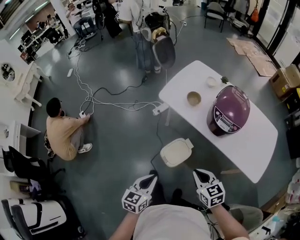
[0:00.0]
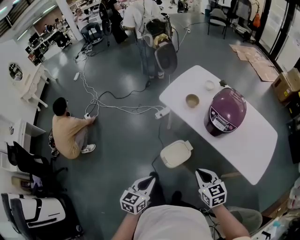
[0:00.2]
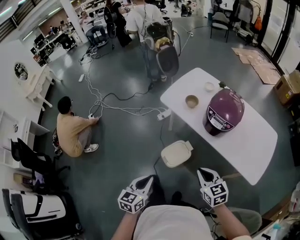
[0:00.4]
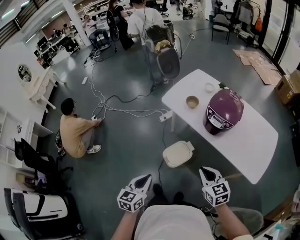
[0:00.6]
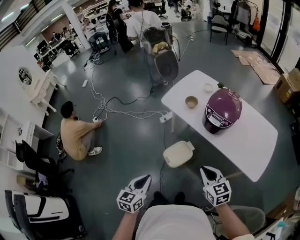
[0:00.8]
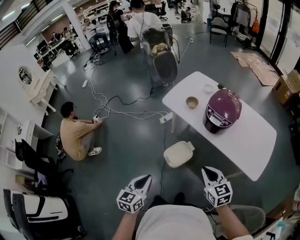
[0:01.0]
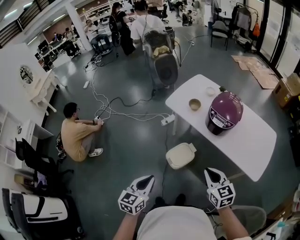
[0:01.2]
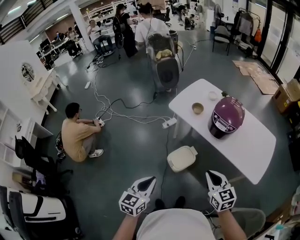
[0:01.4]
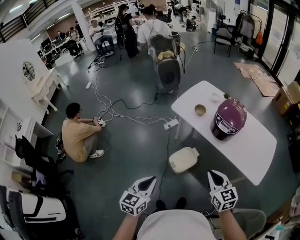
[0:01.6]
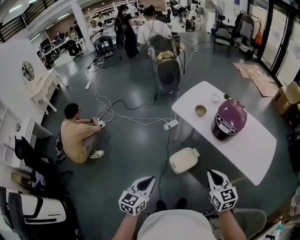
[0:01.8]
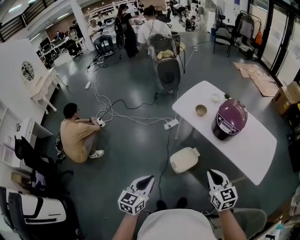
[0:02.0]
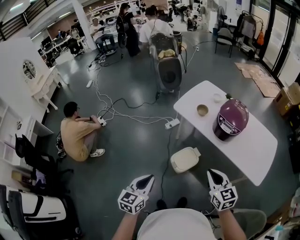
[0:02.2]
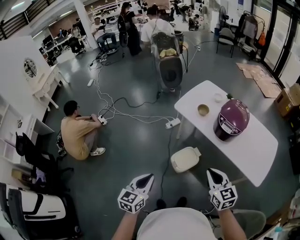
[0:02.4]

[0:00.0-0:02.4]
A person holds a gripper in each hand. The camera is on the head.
0:00.0 to 0:01.2: The right gripper heads backward, upward and to the right, covering roughly 15 cm. Meanwhile the left gripper heads backward and upward, covering about 15 cm.
0:01.2 to 0:02.4: Both grippers travel together to the left, some 5 cm.

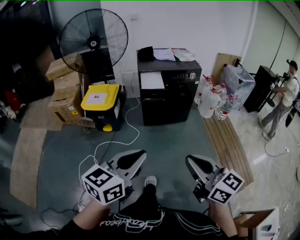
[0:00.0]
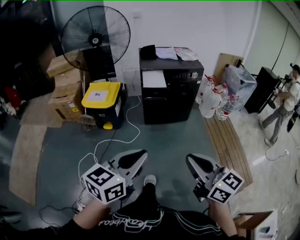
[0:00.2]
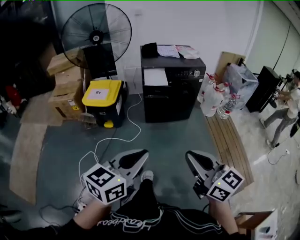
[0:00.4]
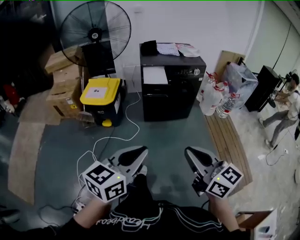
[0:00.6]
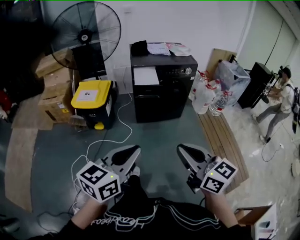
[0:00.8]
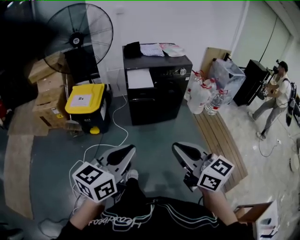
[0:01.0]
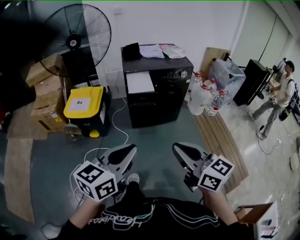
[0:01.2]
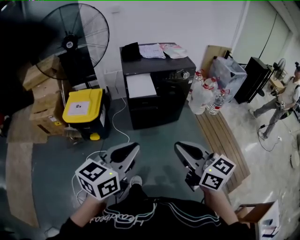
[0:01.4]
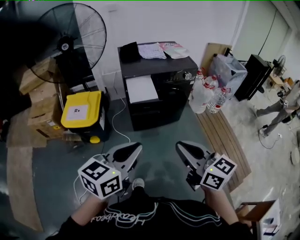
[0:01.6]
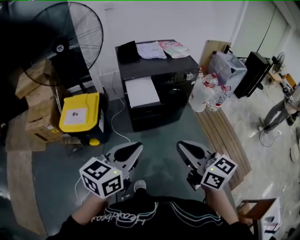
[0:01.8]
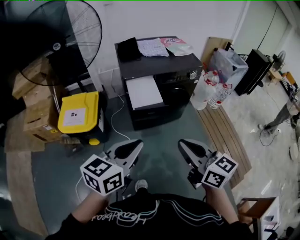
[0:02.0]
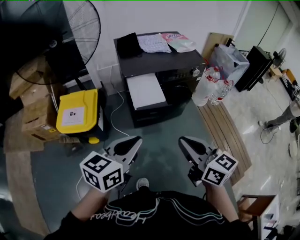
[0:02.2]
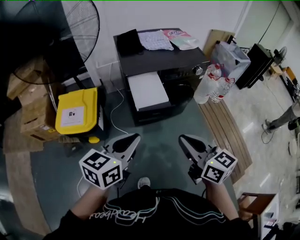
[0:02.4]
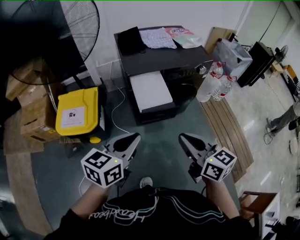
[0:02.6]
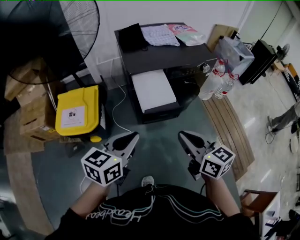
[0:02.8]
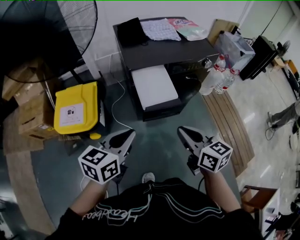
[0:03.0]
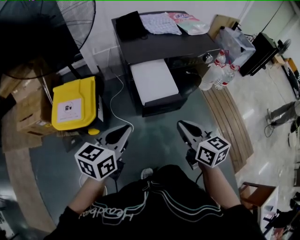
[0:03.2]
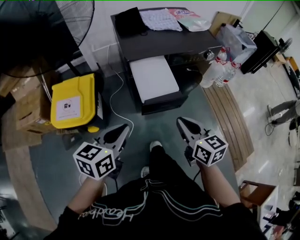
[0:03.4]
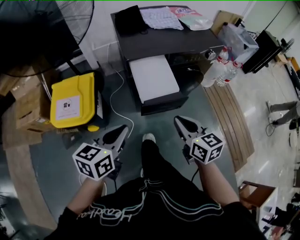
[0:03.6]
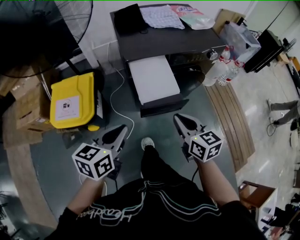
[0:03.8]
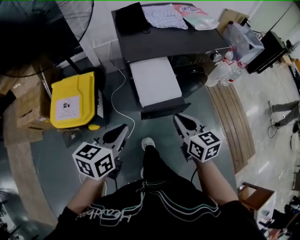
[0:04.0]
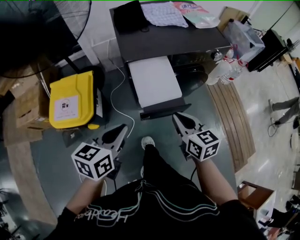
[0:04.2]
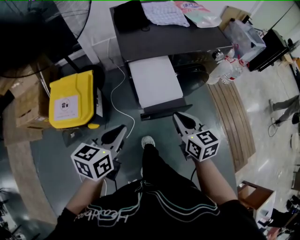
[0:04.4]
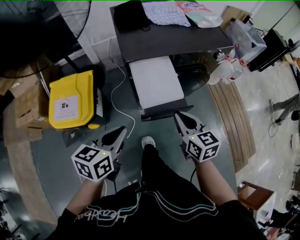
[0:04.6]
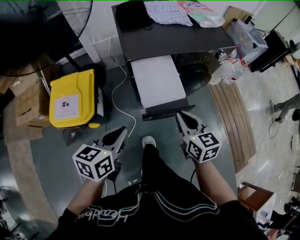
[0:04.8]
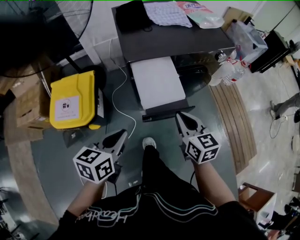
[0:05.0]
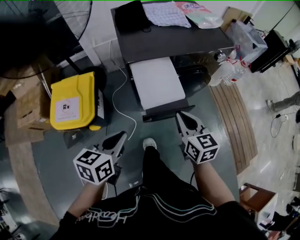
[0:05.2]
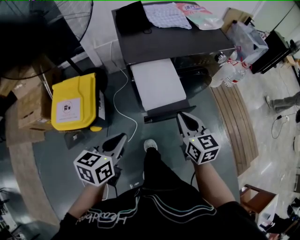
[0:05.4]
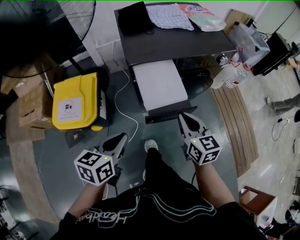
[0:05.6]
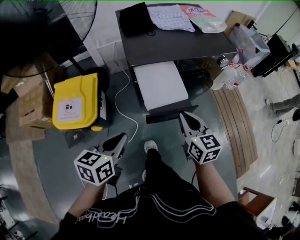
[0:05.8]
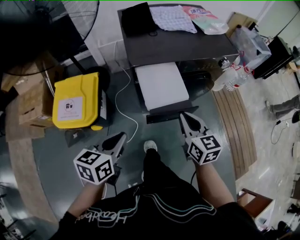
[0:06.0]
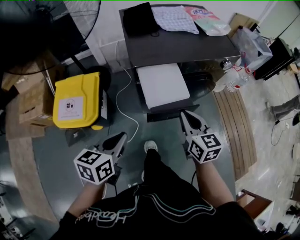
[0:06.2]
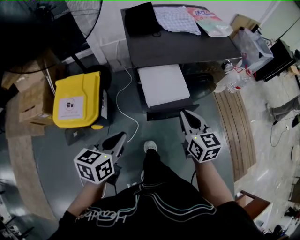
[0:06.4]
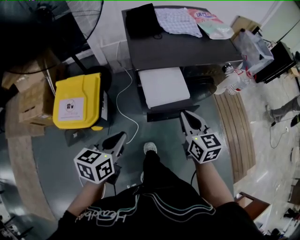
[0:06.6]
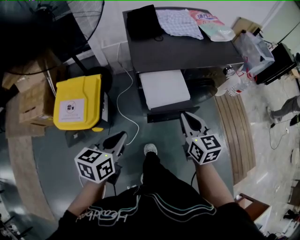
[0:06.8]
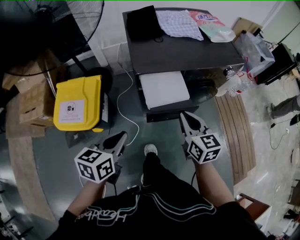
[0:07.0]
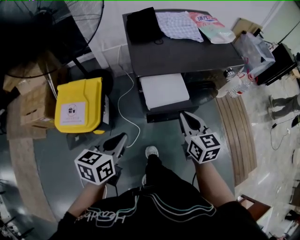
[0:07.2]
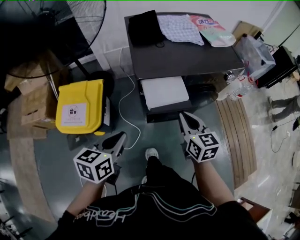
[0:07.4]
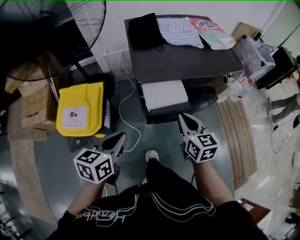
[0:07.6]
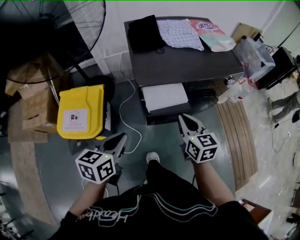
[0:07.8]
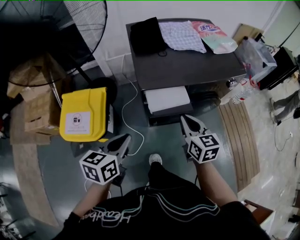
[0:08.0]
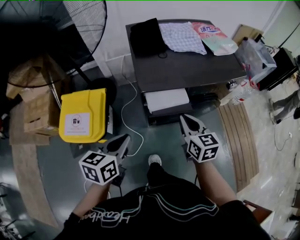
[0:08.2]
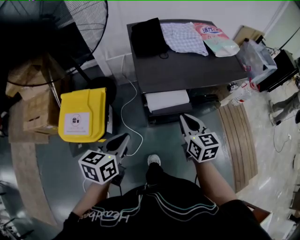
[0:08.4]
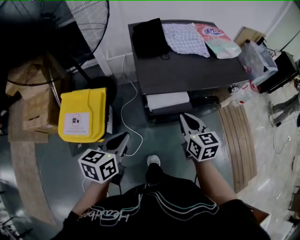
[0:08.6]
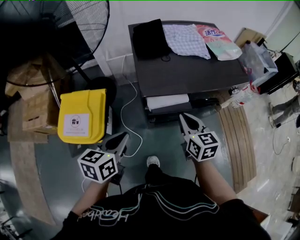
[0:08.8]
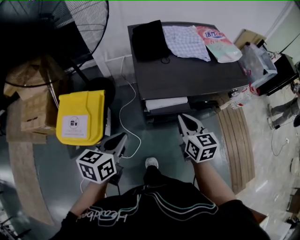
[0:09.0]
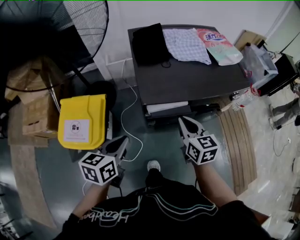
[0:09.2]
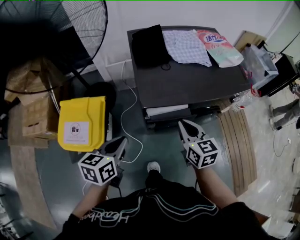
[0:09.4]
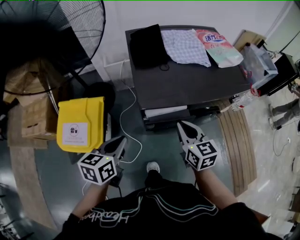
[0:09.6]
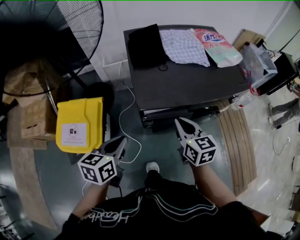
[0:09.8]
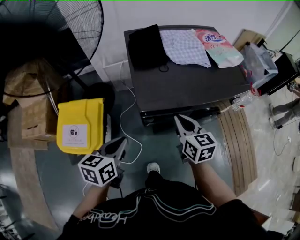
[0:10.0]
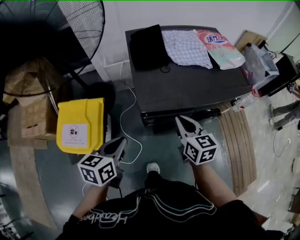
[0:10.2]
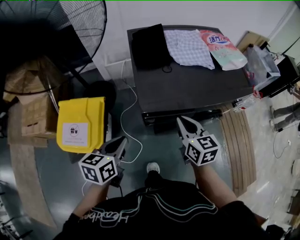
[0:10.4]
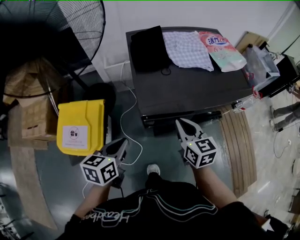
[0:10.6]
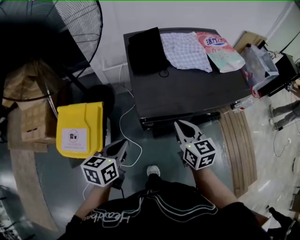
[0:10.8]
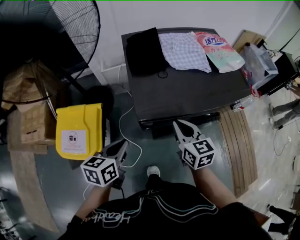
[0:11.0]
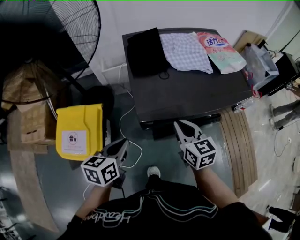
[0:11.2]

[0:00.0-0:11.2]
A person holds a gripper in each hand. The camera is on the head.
0:00.0 to 0:01.6: Both grippers travel together forward, some 25 cm.
0:01.6 to 0:03.2: The left gripper shifts roughly 30 cm forward, to the left and downward. The right gripper shifts roughly 30 cm forward and downward, and turns by roughly 20 degrees.
0:03.2 to 0:04.8: The left gripper heads downward and forward, covering about 10 cm; the right gripper goes roughly 10 cm forward and downward.
0:04.8 to 0:06.4: The grippers stay close to where they were, moving slightly.
0:06.4 to 0:08.0: The two grippers go about 5 cm forward.
0:08.0 to 0:09.6: Both grippers move forward, some 5 cm.
0:09.6 to 0:11.2: The left gripper ends up some 5 cm from where it was; the right gripper heads forward, covering about 5 cm.

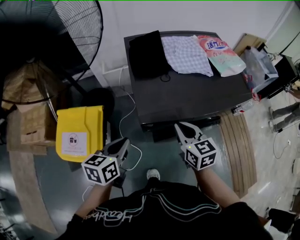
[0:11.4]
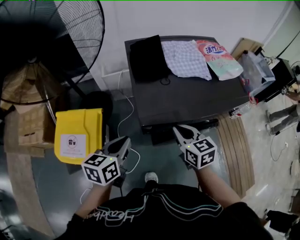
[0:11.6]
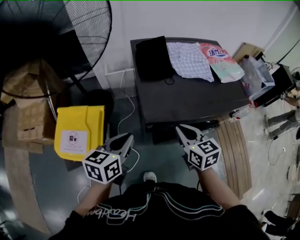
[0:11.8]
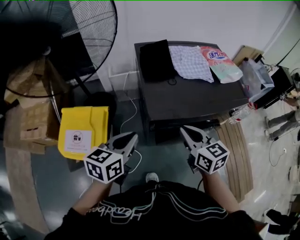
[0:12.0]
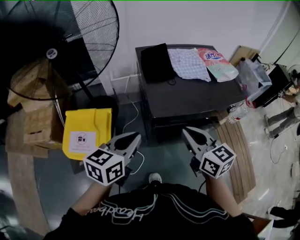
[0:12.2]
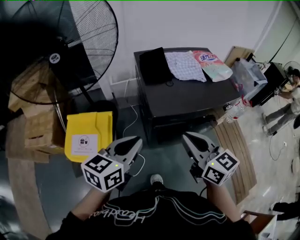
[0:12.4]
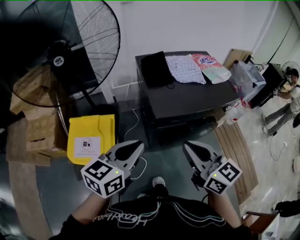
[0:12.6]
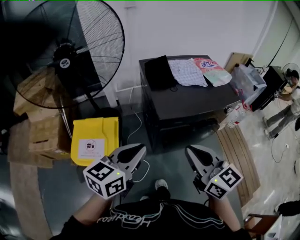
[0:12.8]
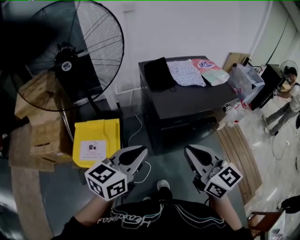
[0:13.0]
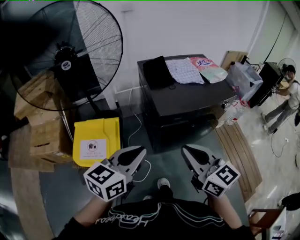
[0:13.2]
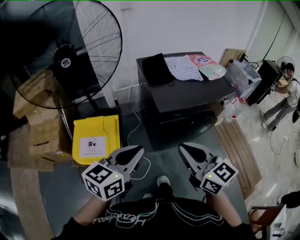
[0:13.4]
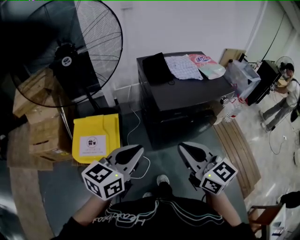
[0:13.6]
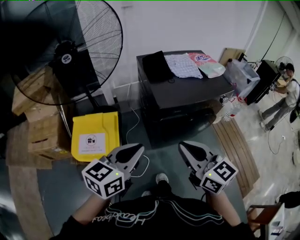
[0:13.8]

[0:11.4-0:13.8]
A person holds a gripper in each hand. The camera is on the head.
0:11.4 to 0:12.6: Both grippers move upward and backward, approximately 25 cm. The left gripper rotates about 30 degrees.
0:12.6 to 0:13.8: The grippers both shift backward by about 10 cm.

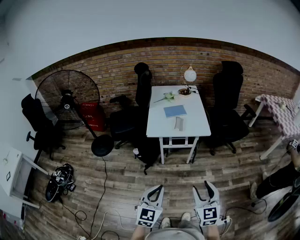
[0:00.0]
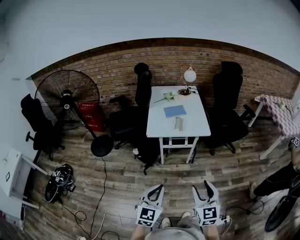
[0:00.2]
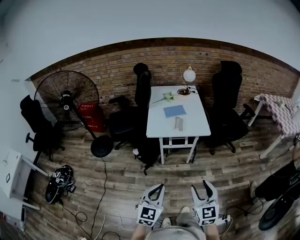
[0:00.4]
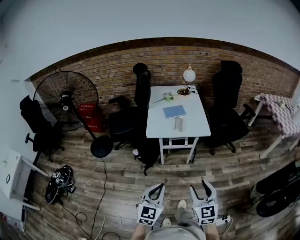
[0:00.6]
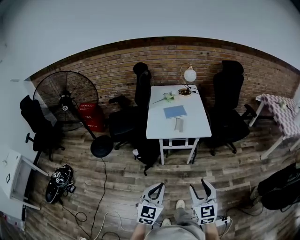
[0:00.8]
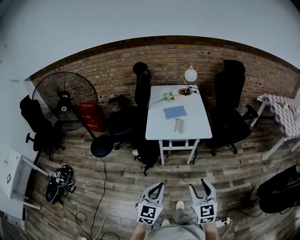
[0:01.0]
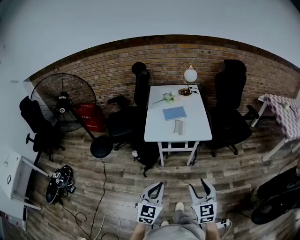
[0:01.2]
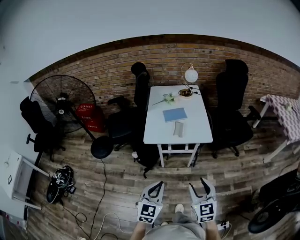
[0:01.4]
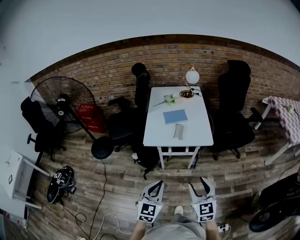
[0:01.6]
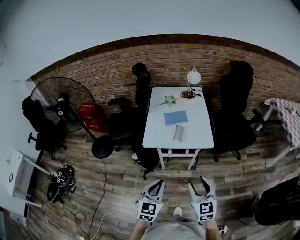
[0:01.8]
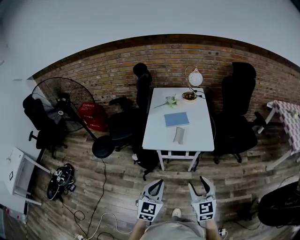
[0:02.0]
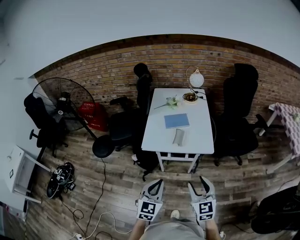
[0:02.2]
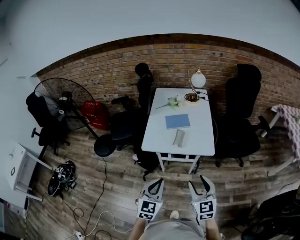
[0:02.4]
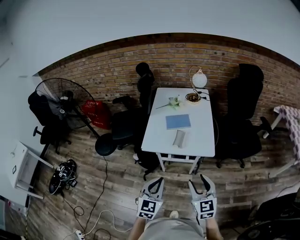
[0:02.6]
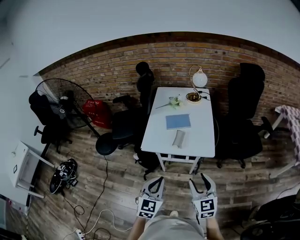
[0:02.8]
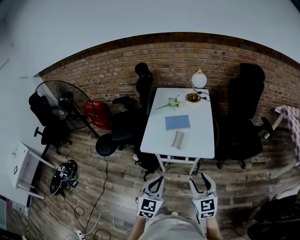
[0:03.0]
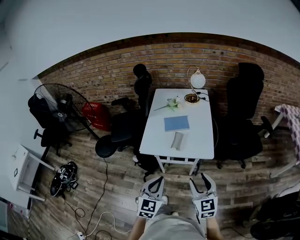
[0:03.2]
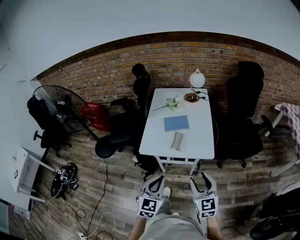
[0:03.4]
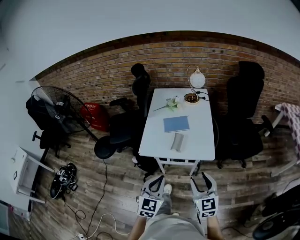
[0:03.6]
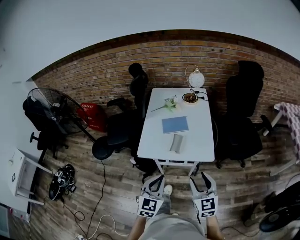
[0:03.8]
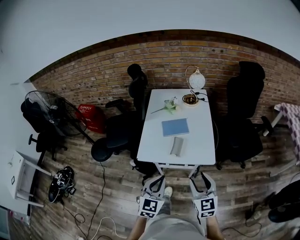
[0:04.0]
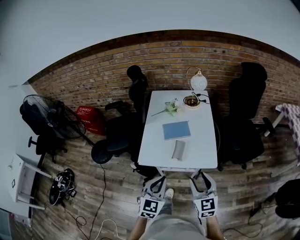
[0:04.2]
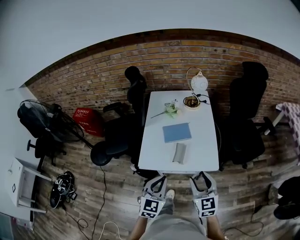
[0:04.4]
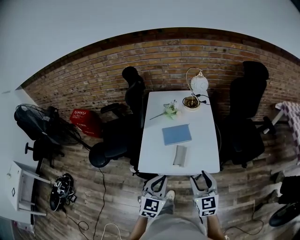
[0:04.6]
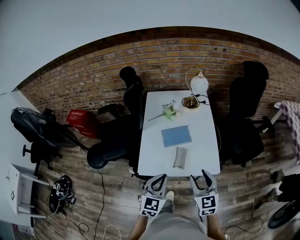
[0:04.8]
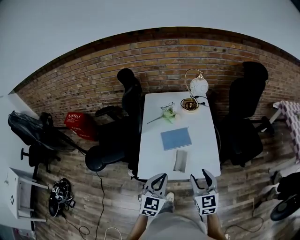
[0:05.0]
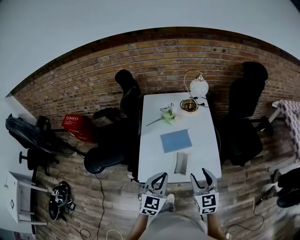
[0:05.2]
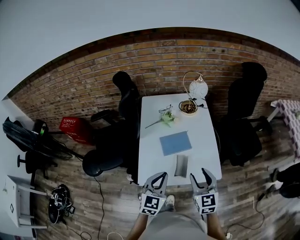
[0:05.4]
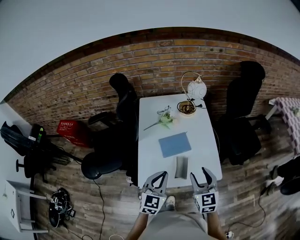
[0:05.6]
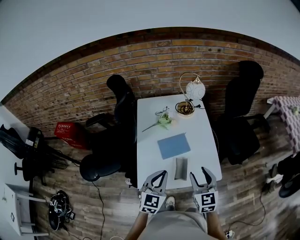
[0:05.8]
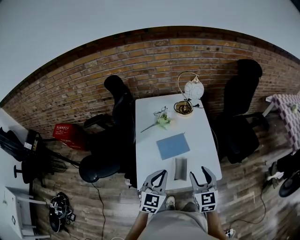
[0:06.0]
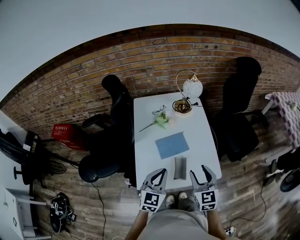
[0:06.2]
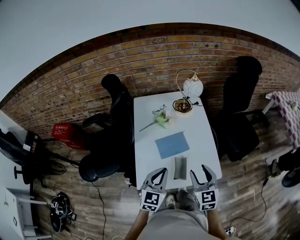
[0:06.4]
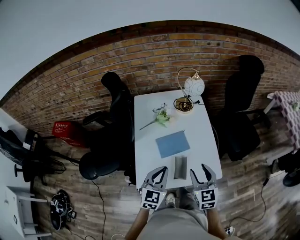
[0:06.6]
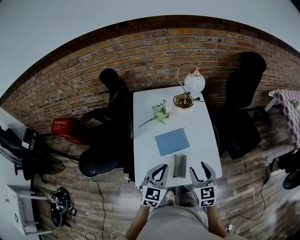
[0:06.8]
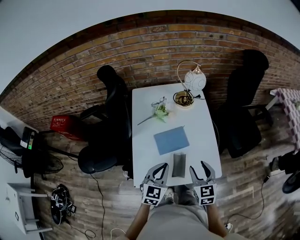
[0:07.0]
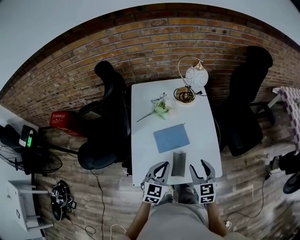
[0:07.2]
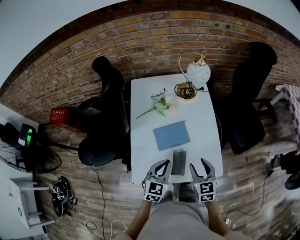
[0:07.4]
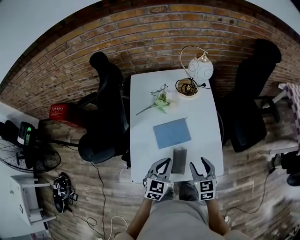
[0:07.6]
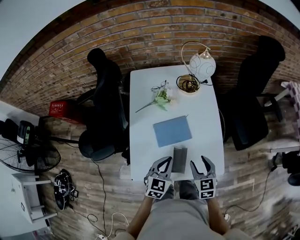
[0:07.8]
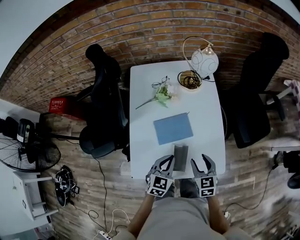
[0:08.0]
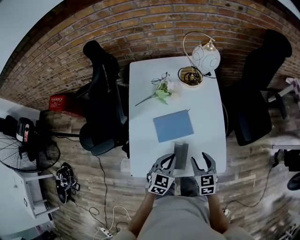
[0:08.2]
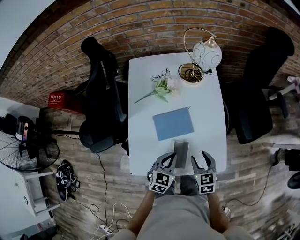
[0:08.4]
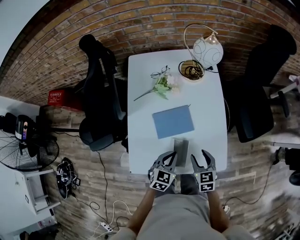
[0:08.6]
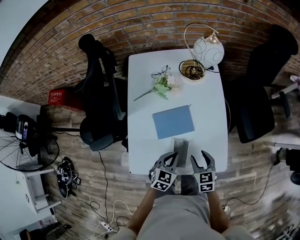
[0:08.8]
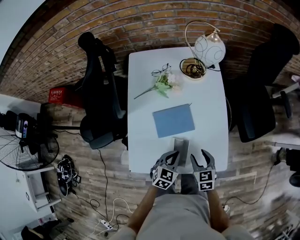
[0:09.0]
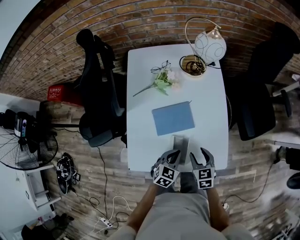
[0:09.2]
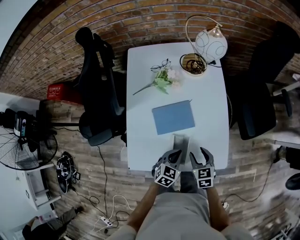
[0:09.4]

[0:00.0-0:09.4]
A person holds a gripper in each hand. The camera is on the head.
0:00.0 to 0:01.6: Both grippers travel together forward, some 15 cm.
0:01.6 to 0:03.2: The grippers both shift forward and to the right by about 15 cm.
0:03.2 to 0:04.8: Both grippers move forward, roughly 20 cm.
0:04.8 to 0:06.2: The grippers both shift forward by about 10 cm.
0:06.2 to 0:07.8: The two grippers go some 15 cm downward and forward.
0:07.8 to 0:09.4: The right gripper shifts some 10 cm downward. The left gripper goes about 15 cm downward and to the right.
